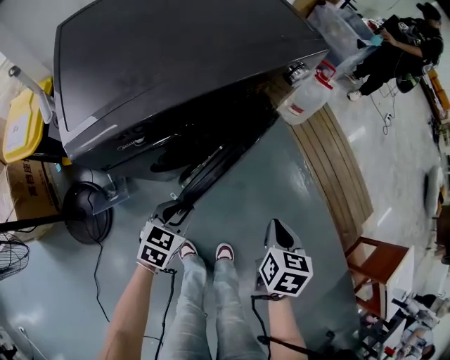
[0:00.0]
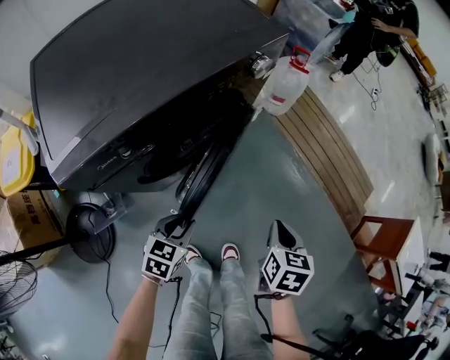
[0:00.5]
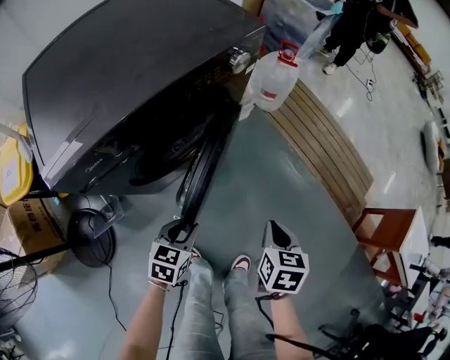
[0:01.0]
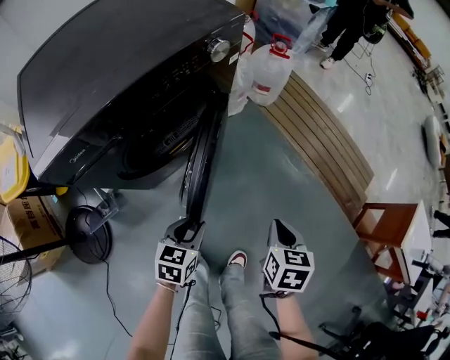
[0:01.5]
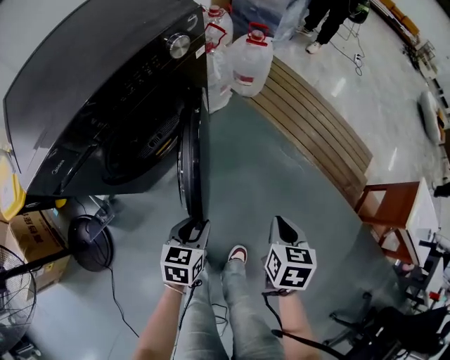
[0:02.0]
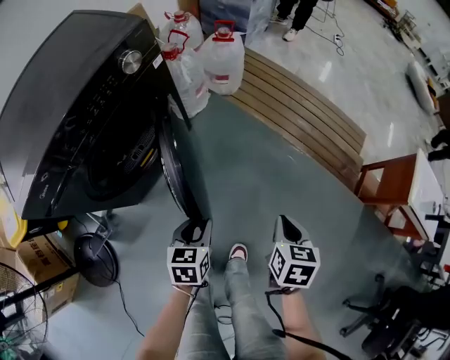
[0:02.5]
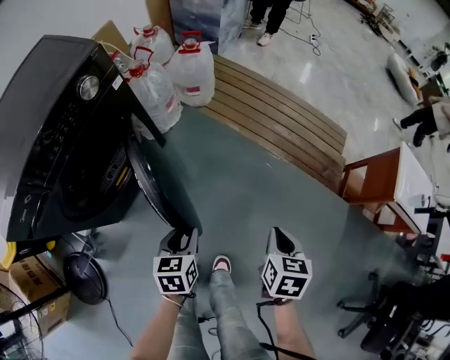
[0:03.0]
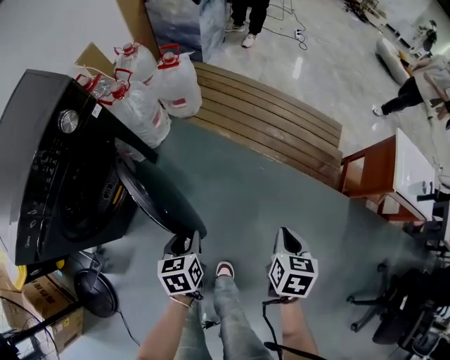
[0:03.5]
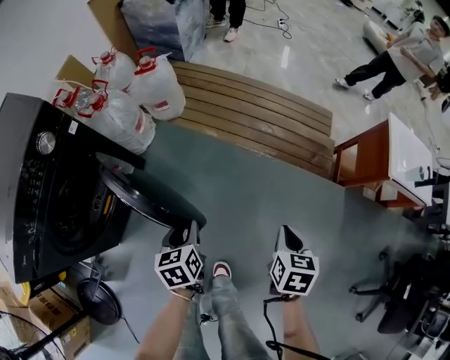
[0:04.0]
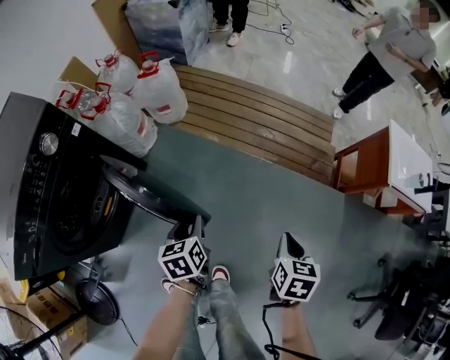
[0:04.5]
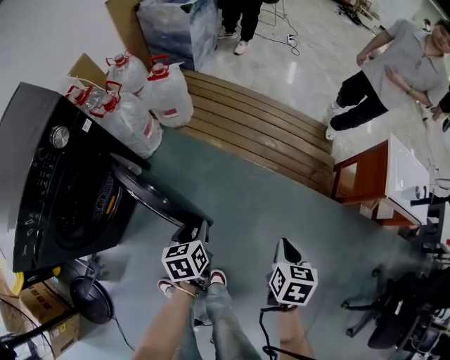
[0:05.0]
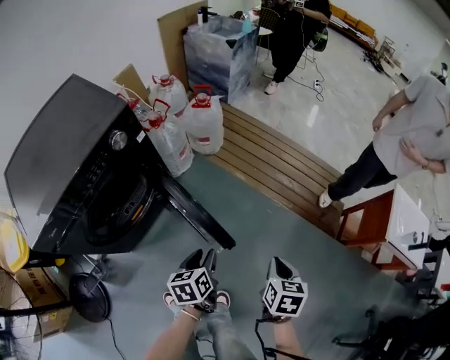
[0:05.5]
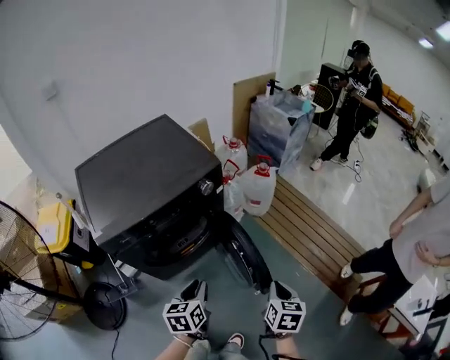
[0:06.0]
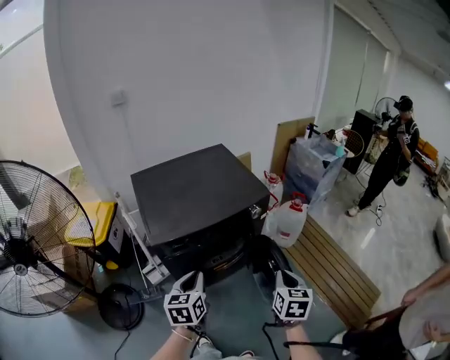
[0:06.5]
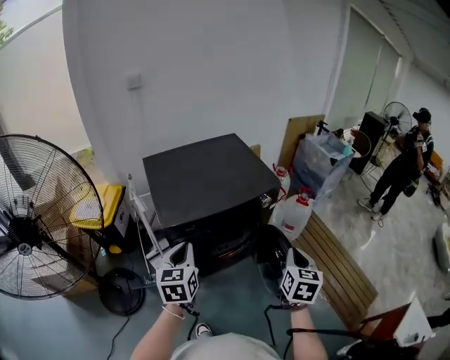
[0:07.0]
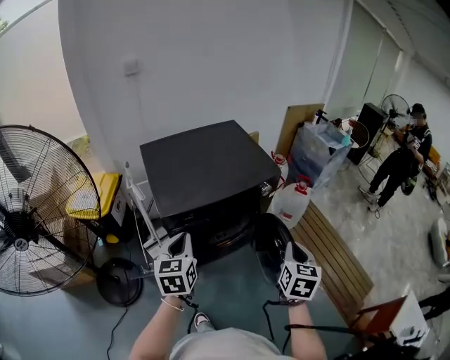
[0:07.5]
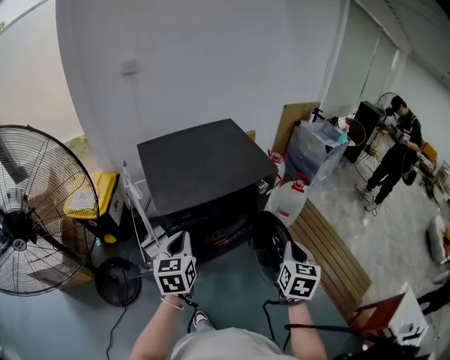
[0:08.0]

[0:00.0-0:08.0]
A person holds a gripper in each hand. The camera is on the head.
0:00.0 to 0:02.0: Both grippers travel together to the right, about 20 cm.
0:02.0 to 0:04.0: The left gripper heads to the right and forward, covering roughly 25 cm. The right gripper moves to the right, roughly 25 cm, and changes its angle by approximately 30 degrees.
0:04.0 to 0:06.0: The left gripper ends up approximately 30 cm from where it was, and rotates about 30 degrees; the right gripper moves about 30 cm, and rotates about 30 degrees.
0:06.0 to 0:08.0: The right gripper shifts about 25 cm upward and to the left, and rotates about 20 degrees. The left gripper is displaced to the left and upward by about 30 cm, and rotates approximately 30 degrees.

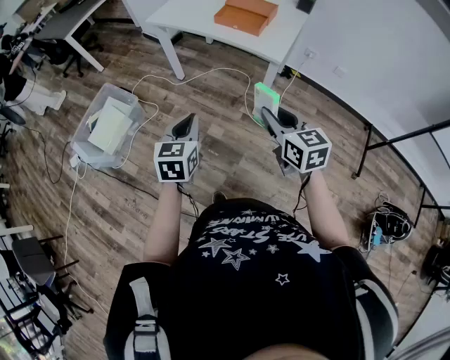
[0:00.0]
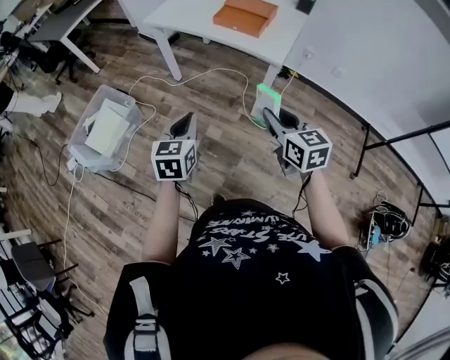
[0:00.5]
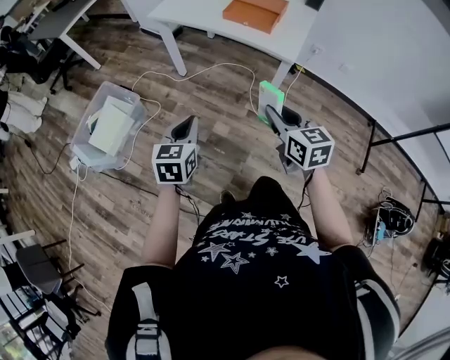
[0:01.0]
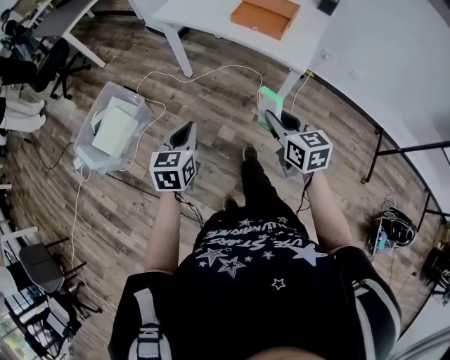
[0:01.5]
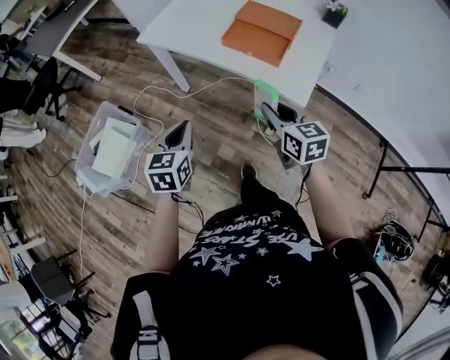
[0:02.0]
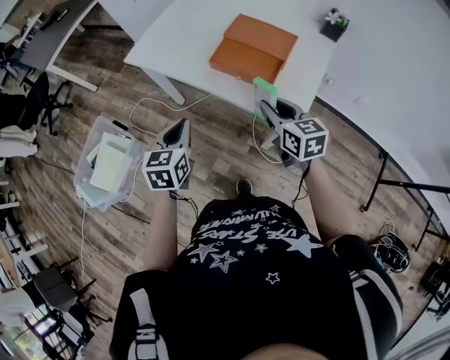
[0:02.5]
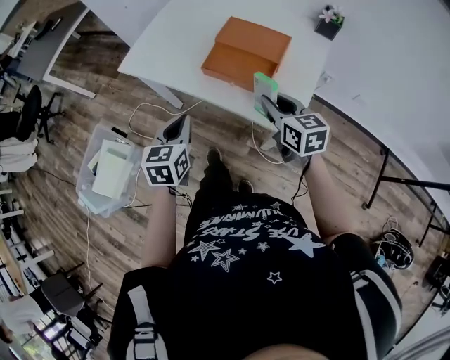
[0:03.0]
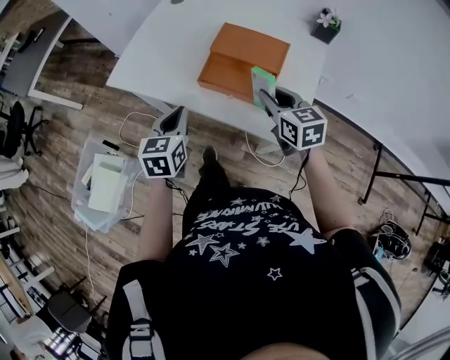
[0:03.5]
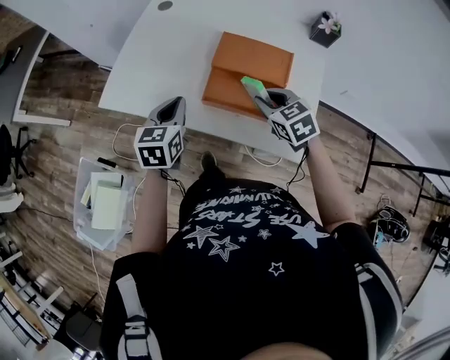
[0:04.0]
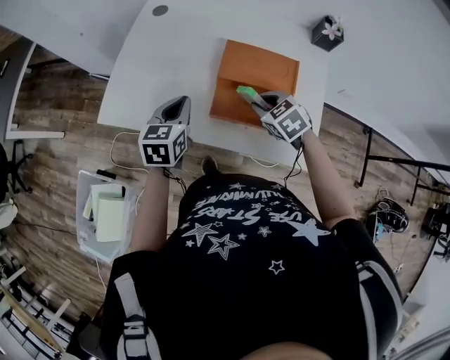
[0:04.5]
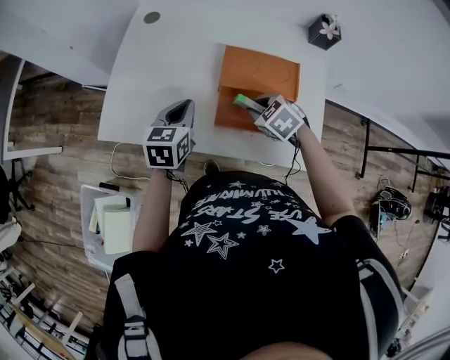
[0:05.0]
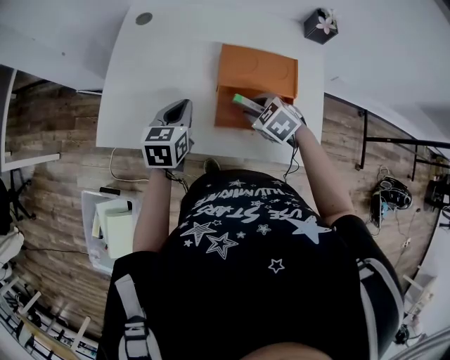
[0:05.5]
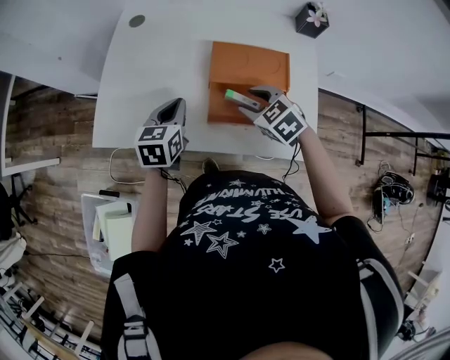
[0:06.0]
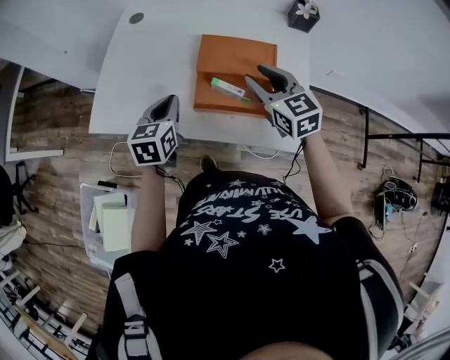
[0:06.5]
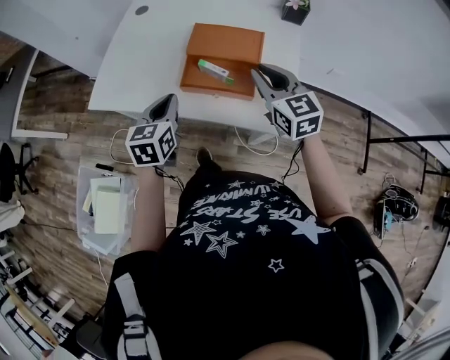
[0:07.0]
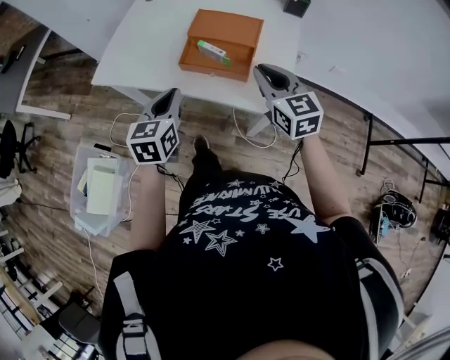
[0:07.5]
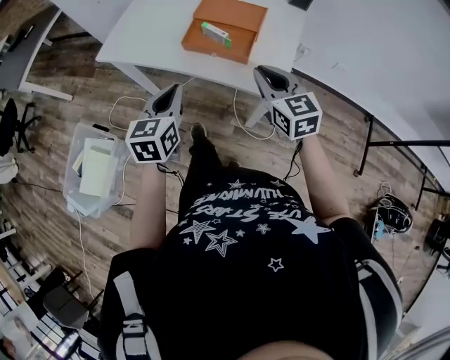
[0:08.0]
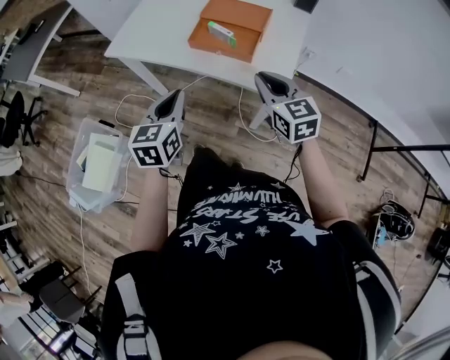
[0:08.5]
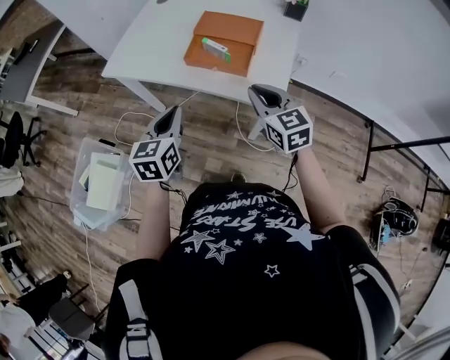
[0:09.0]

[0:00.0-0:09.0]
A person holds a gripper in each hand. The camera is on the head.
0:00.0 to 0:02.0: Both grippers move forward, some 35 cm.
0:02.0 to 0:04.5: The two grippers go roughly 40 cm forward. The left gripper rotates roughly 20 degrees. The right gripper tilts its fingers about 30 degrees downward.
0:04.5 to 0:07.0: The right gripper shifts some 20 cm upward, backward and to the right, and tilts its fingers approximately 40 degrees upward; the left gripper is displaced backward and to the right by some 15 cm.
0:07.0 to 0:09.0: The grippers both shift backward by roughly 20 cm.

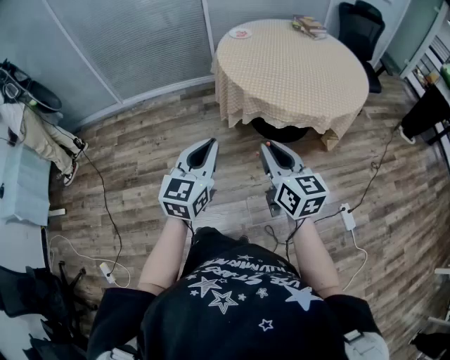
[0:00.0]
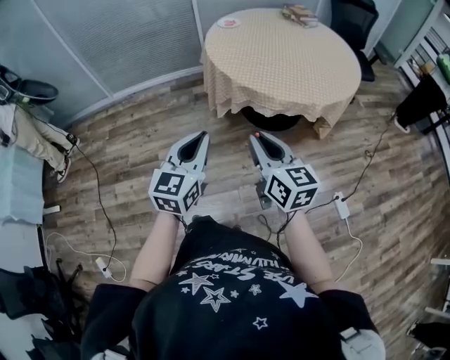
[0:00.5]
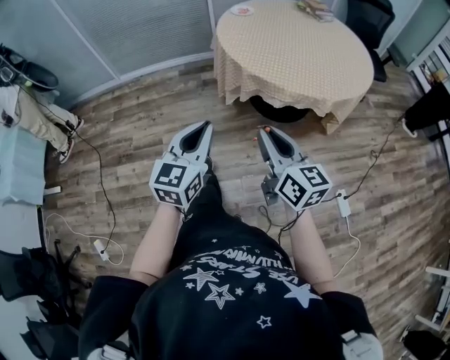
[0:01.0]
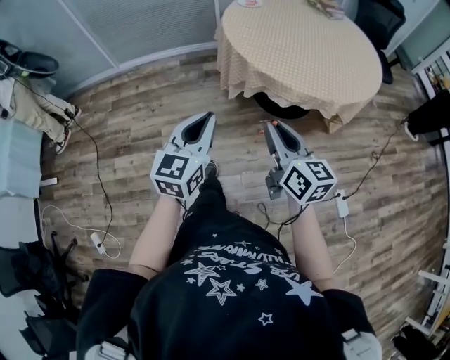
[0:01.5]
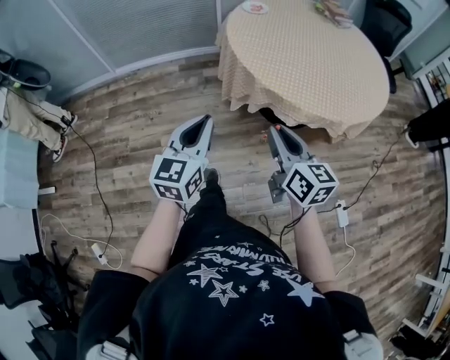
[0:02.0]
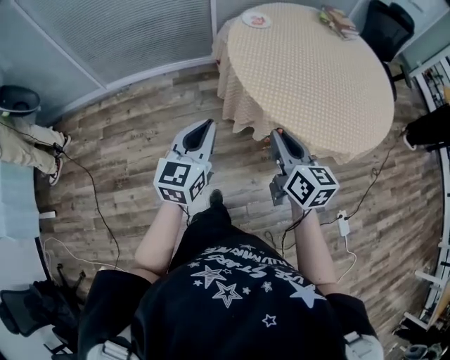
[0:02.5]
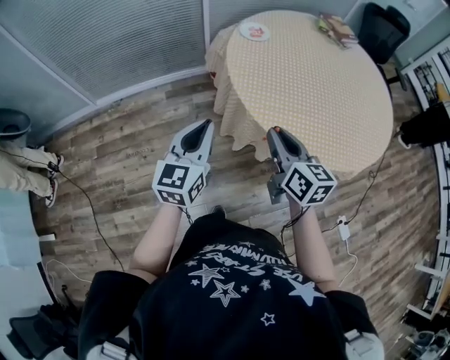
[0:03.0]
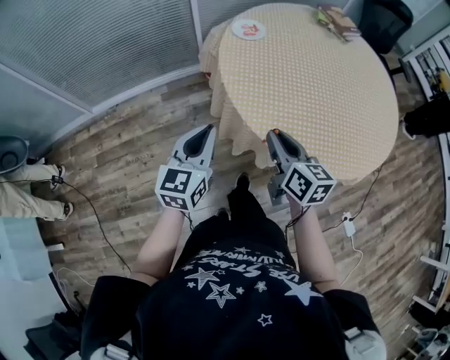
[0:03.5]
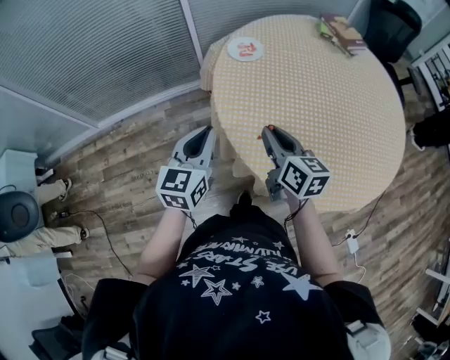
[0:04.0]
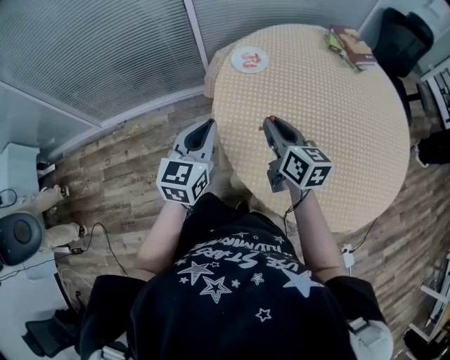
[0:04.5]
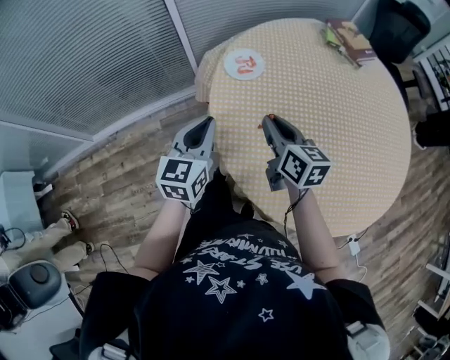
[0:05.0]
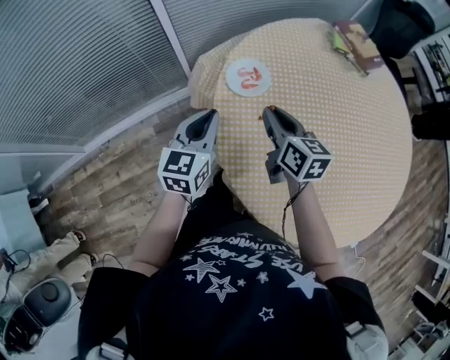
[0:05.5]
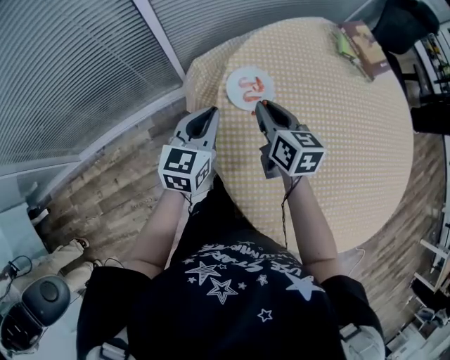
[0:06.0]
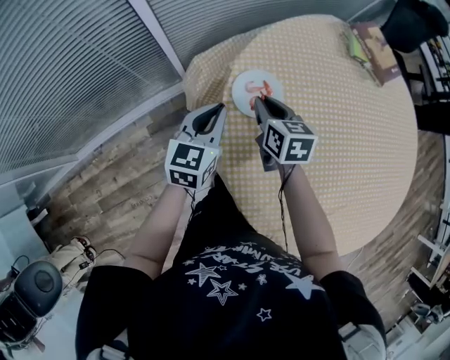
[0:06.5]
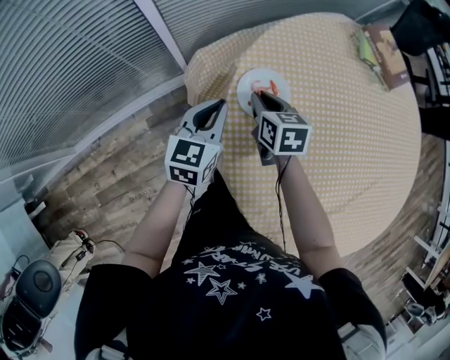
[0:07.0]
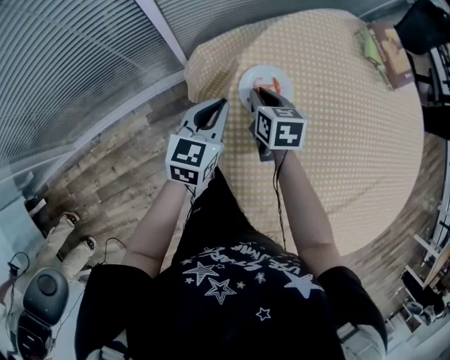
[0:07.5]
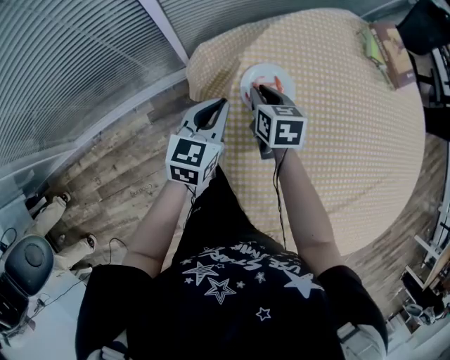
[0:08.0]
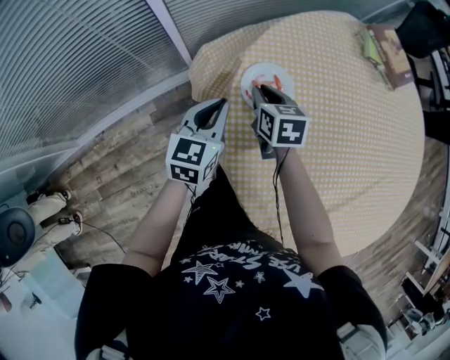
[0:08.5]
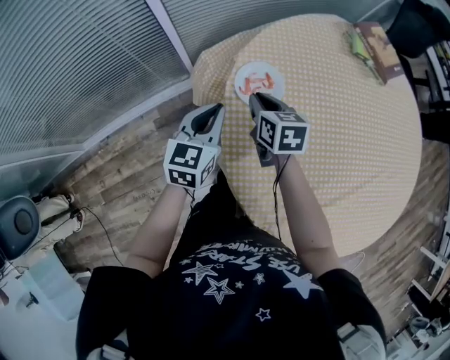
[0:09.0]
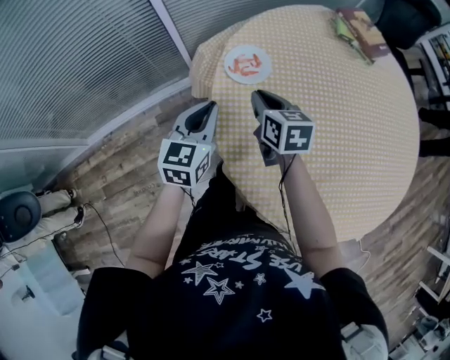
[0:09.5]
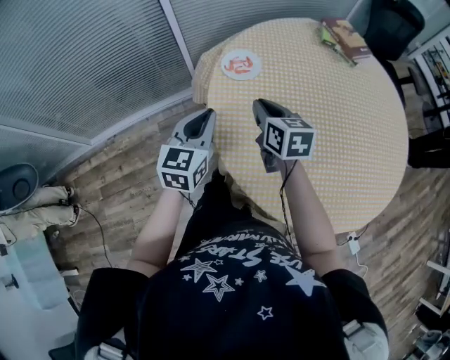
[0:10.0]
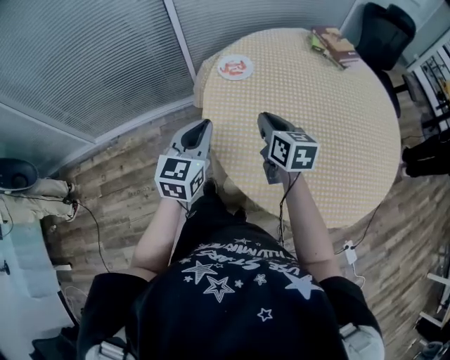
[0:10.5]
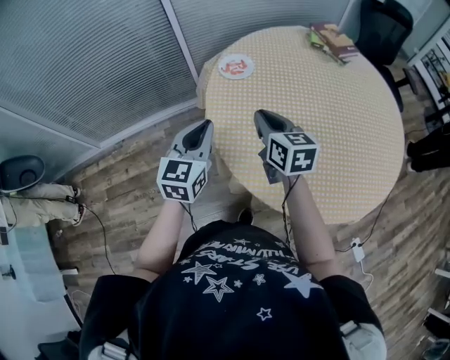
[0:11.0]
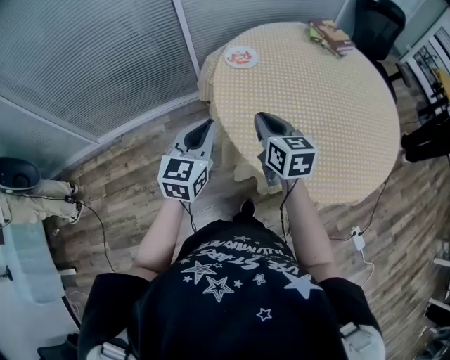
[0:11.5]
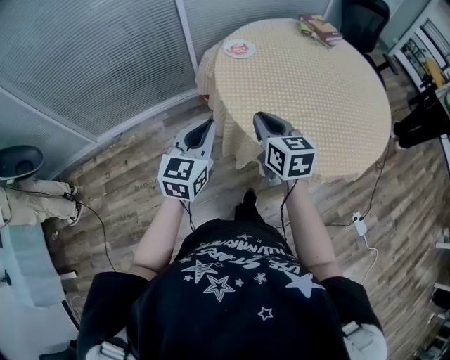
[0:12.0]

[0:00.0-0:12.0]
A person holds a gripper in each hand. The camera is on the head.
0:00.0 to 0:02.0: Both grippers travel together forward, roughly 15 cm.
0:02.0 to 0:04.0: Both grippers are carried forward, approximately 40 cm.
0:04.0 to 0:06.0: The grippers both shift forward by about 35 cm.
0:06.0 to 0:08.0: The right gripper goes approximately 15 cm downward, forward and to the left. The left gripper is displaced downward by roughly 5 cm.
0:08.0 to 0:10.0: The two grippers go about 25 cm backward and upward.
0:10.0 to 0:12.0: The grippers both shift backward by roughly 25 cm.
